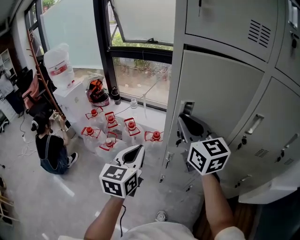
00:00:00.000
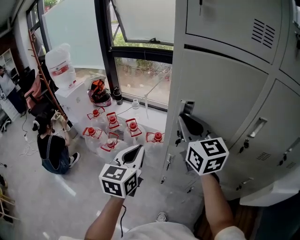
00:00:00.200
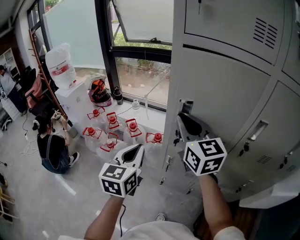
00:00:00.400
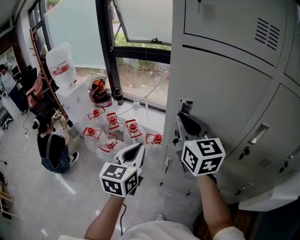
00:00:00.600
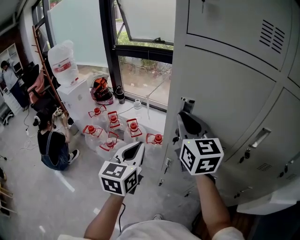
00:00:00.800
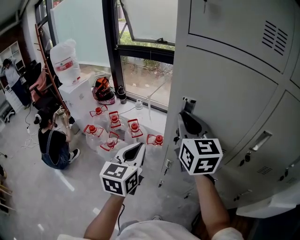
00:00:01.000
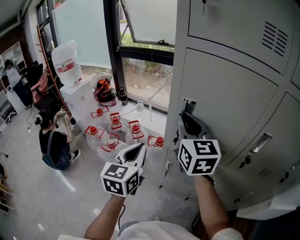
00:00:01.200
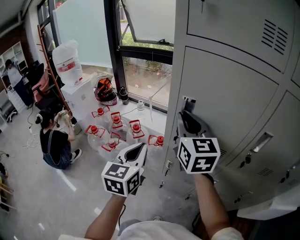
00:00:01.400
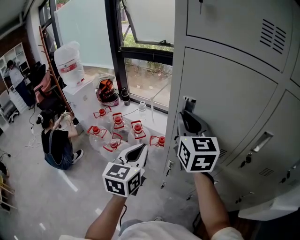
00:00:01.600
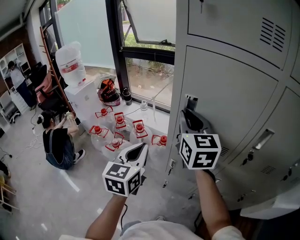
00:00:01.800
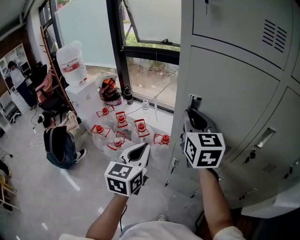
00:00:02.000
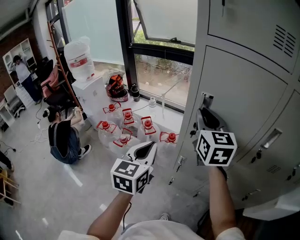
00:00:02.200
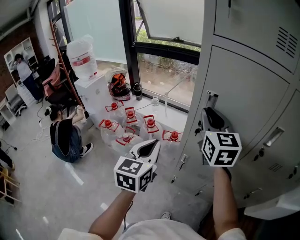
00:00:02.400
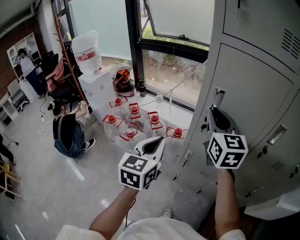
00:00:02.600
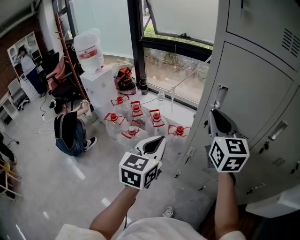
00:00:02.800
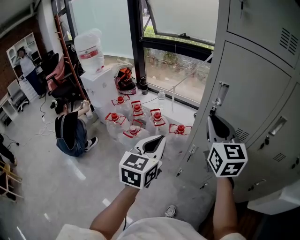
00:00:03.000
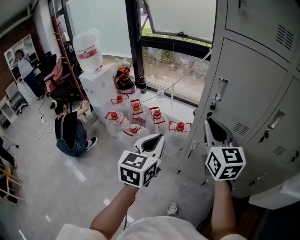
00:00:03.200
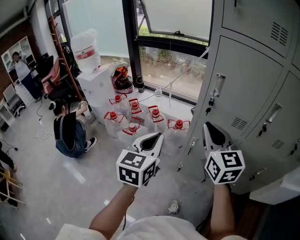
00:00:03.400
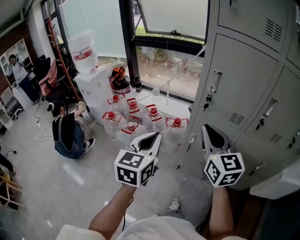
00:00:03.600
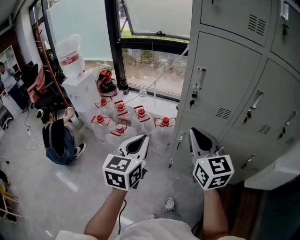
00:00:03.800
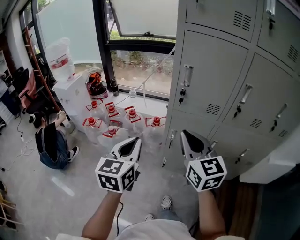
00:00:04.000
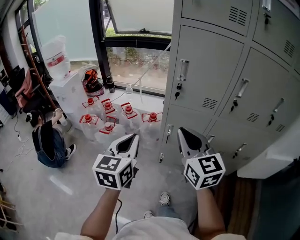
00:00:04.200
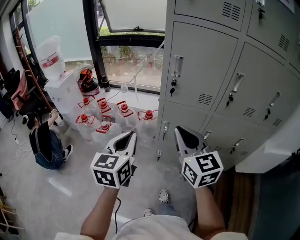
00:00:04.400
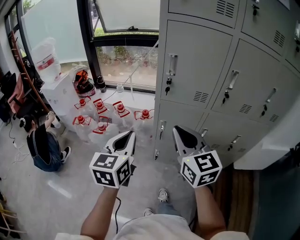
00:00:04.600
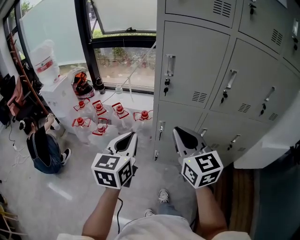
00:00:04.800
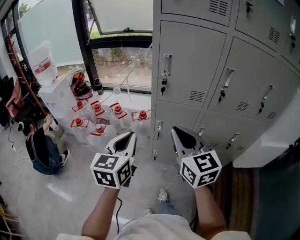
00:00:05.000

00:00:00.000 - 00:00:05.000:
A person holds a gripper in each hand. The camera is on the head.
00:00:00.000 - 00:00:01.600: The right gripper moves forward, roughly 5 cm.
00:00:01.600 - 00:00:03.400: The right gripper travels backward by some 15 cm; the left gripper heads backward and to the left, covering approximately 15 cm.
00:00:03.400 - 00:00:05.000: The left gripper travels backward by some 5 cm. Meanwhile the right gripper travels backward by some 10 cm.

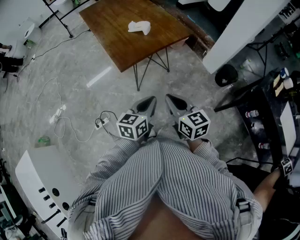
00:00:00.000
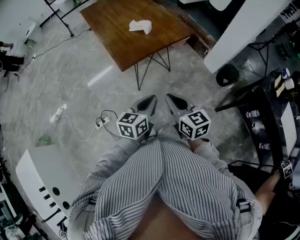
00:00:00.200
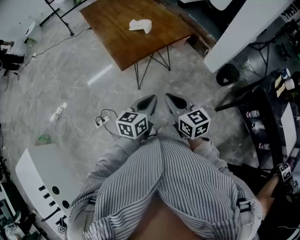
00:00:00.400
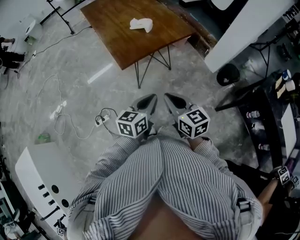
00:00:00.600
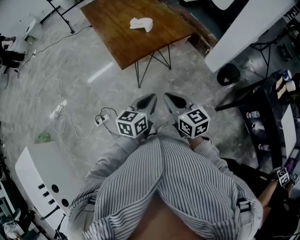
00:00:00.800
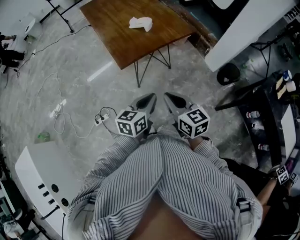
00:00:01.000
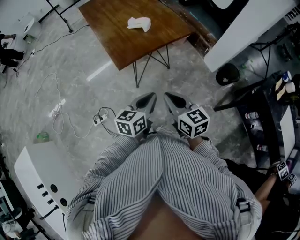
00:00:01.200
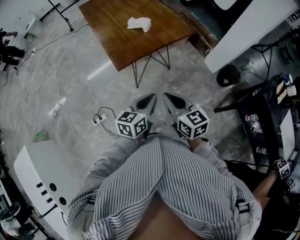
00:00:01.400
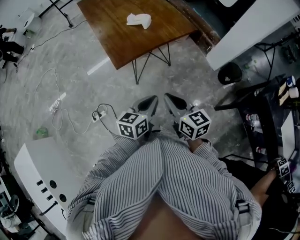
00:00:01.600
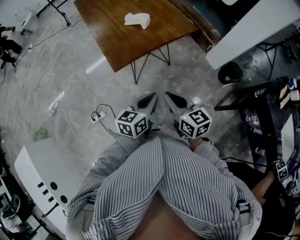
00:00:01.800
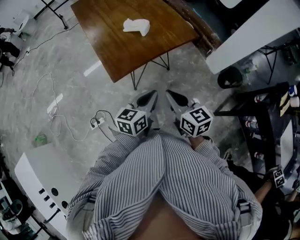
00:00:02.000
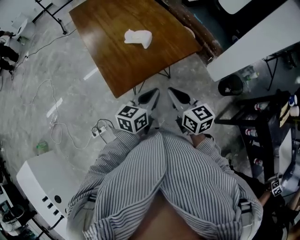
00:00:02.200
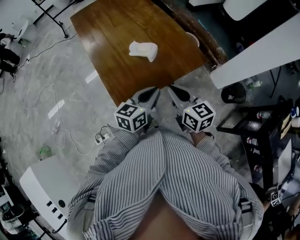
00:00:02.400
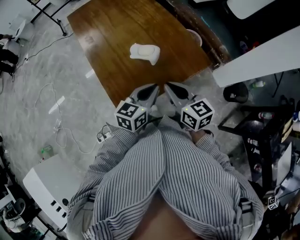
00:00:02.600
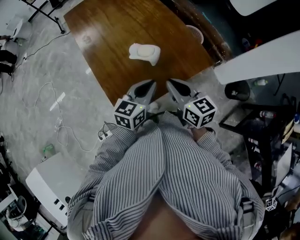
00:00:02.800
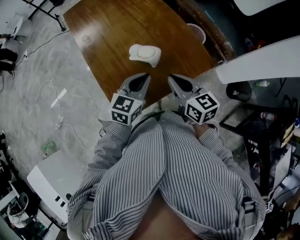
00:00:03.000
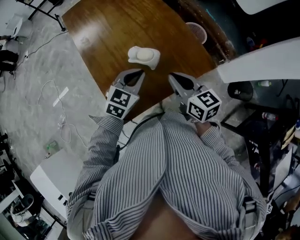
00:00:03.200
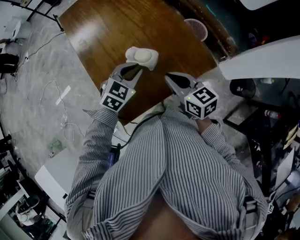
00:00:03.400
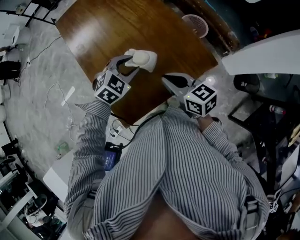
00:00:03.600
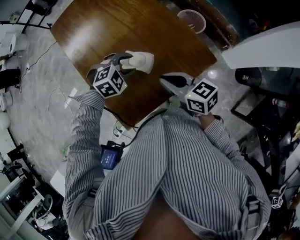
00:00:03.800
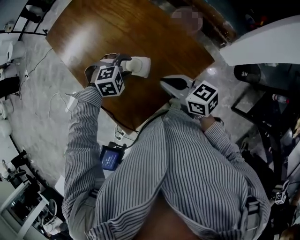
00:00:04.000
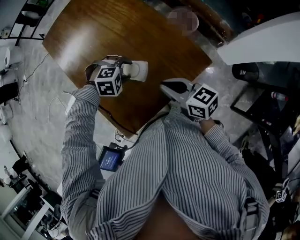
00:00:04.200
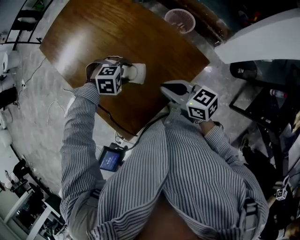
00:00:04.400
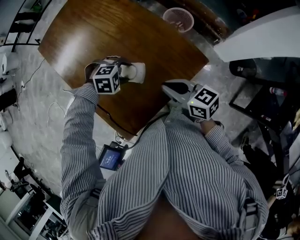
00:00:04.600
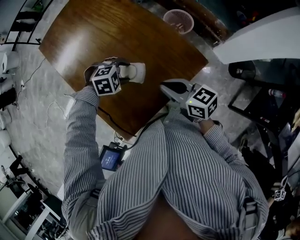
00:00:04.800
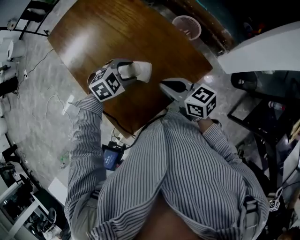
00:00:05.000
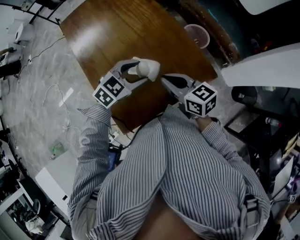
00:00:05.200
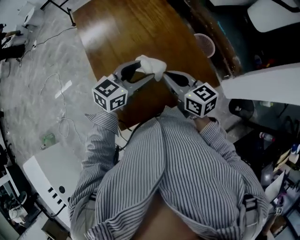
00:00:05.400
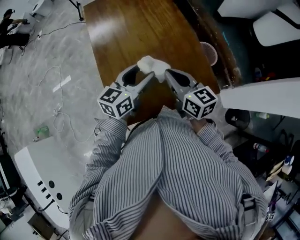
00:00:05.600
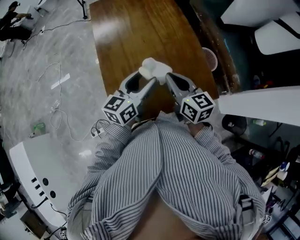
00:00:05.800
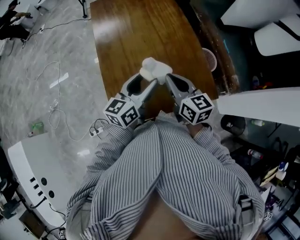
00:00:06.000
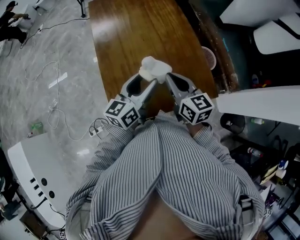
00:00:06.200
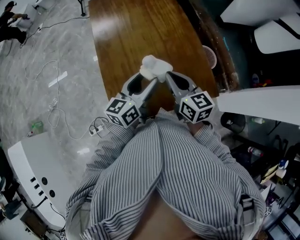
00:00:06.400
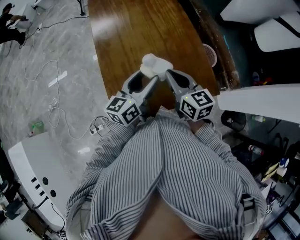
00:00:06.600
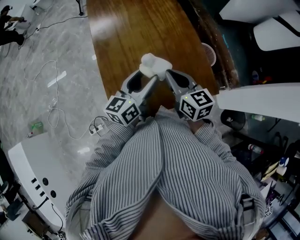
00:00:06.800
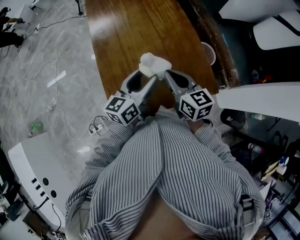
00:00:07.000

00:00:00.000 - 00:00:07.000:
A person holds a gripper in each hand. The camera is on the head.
00:00:00.000 - 00:00:01.400: The grippers move only a little.
00:00:01.400 - 00:00:02.800: The two grippers go approximately 35 cm forward.
00:00:02.800 - 00:00:04.200: The left gripper moves some 20 cm, tilts its fingers approximately 60 degrees downward, and opens its fingers, while the right gripper ends up about 10 cm from where it was.
00:00:04.200 - 00:00:05.600: The left gripper goes roughly 15 cm upward, and tilts its fingers approximately 60 degrees upward, while the right gripper changes place by some 10 cm.
00:00:05.600 - 00:00:07.000: The grippers move only a little.

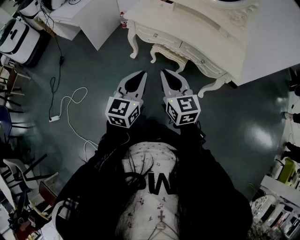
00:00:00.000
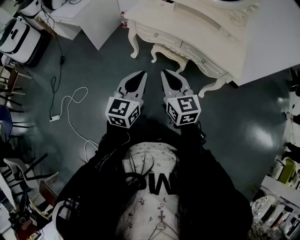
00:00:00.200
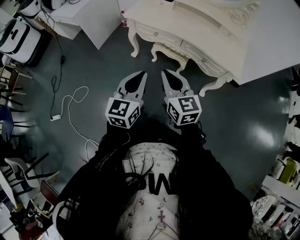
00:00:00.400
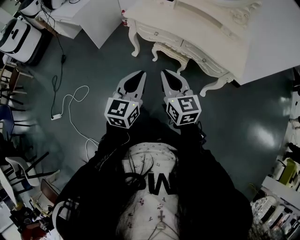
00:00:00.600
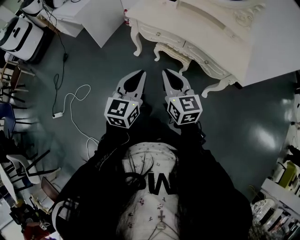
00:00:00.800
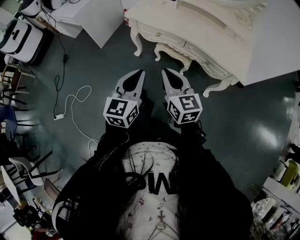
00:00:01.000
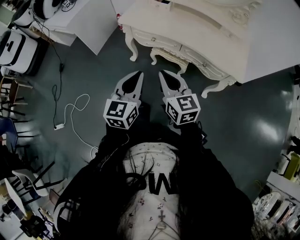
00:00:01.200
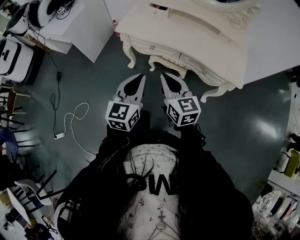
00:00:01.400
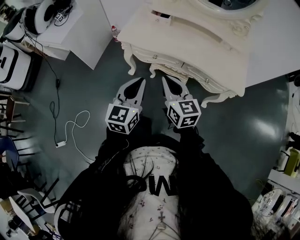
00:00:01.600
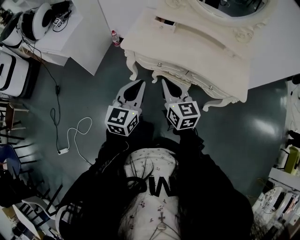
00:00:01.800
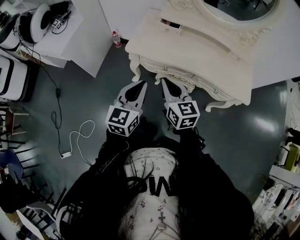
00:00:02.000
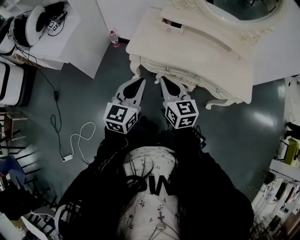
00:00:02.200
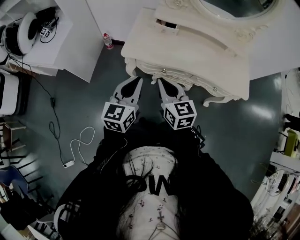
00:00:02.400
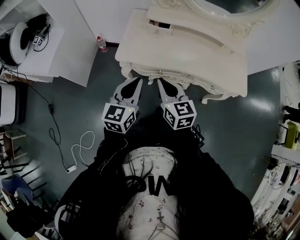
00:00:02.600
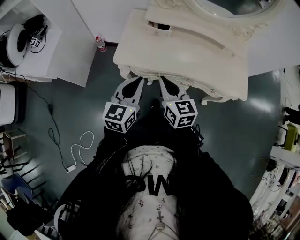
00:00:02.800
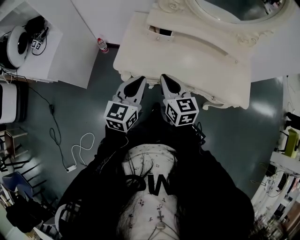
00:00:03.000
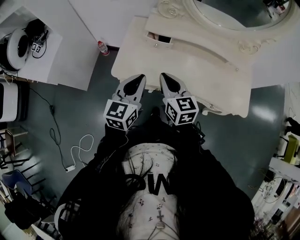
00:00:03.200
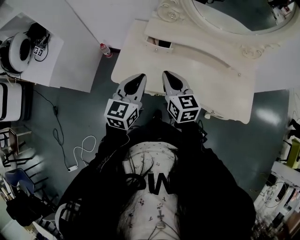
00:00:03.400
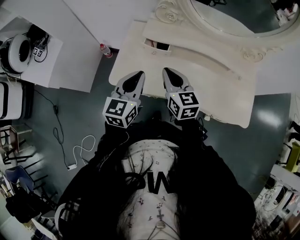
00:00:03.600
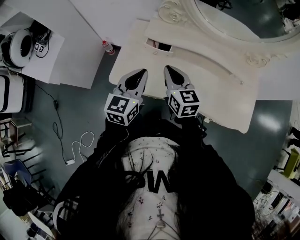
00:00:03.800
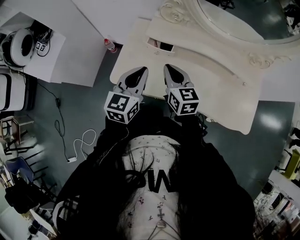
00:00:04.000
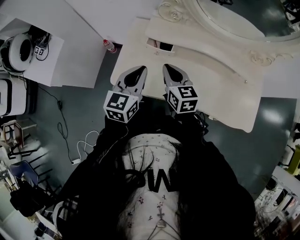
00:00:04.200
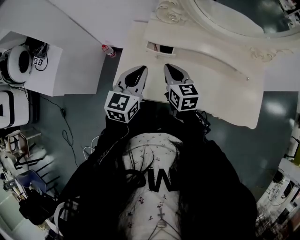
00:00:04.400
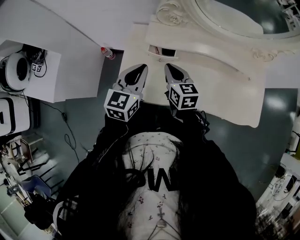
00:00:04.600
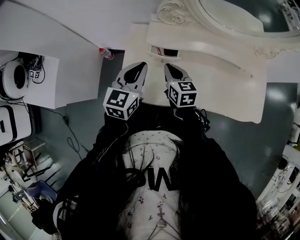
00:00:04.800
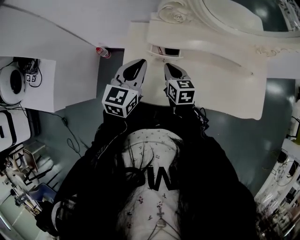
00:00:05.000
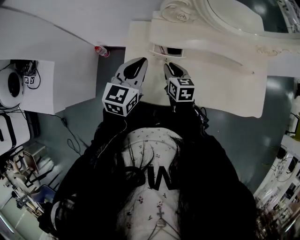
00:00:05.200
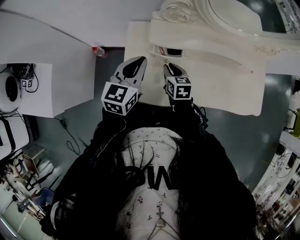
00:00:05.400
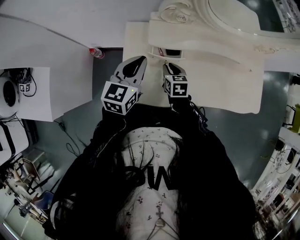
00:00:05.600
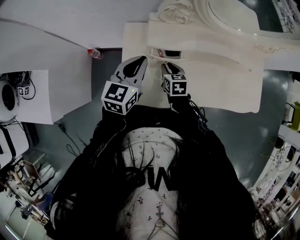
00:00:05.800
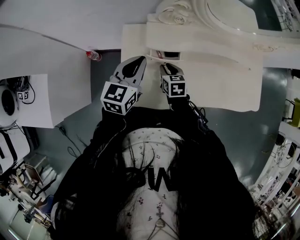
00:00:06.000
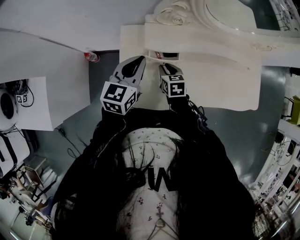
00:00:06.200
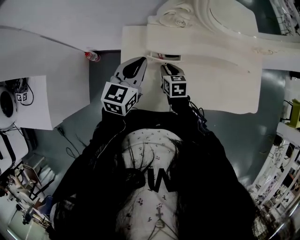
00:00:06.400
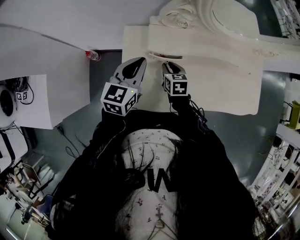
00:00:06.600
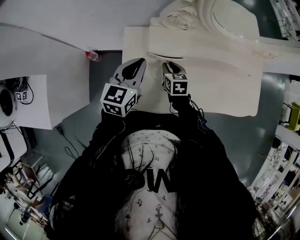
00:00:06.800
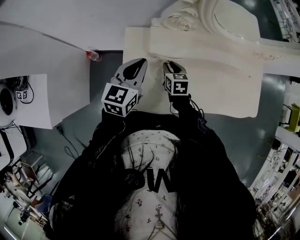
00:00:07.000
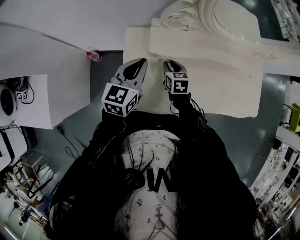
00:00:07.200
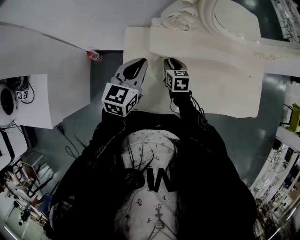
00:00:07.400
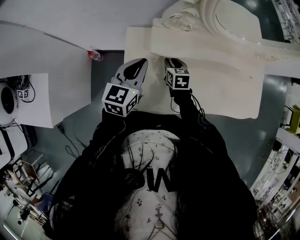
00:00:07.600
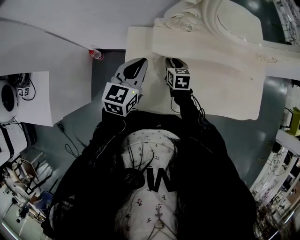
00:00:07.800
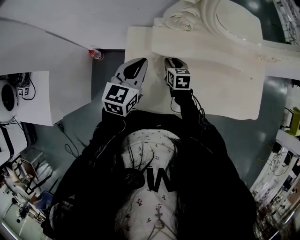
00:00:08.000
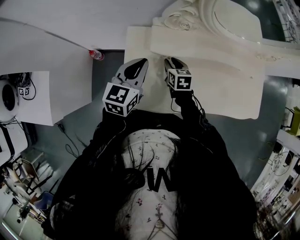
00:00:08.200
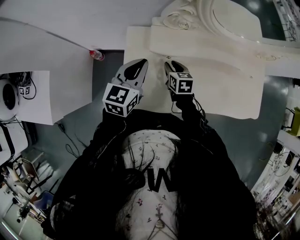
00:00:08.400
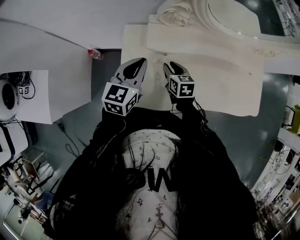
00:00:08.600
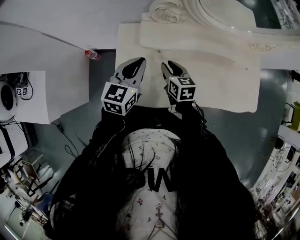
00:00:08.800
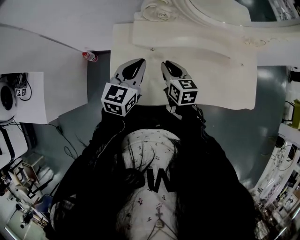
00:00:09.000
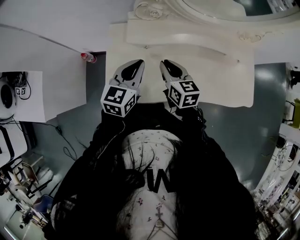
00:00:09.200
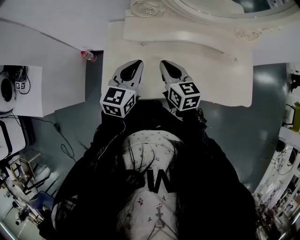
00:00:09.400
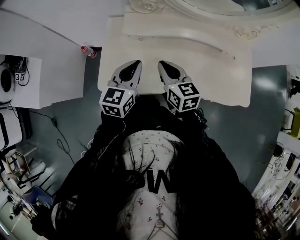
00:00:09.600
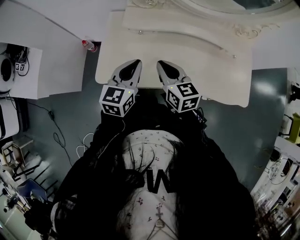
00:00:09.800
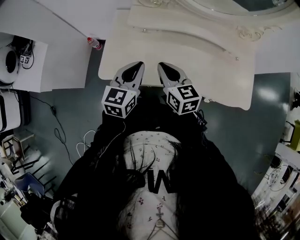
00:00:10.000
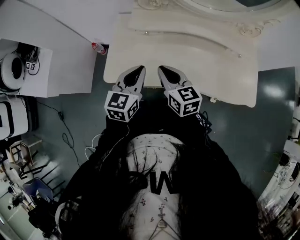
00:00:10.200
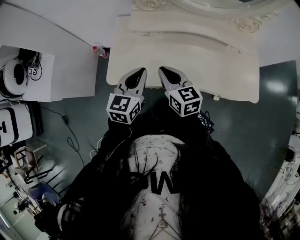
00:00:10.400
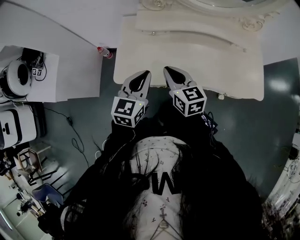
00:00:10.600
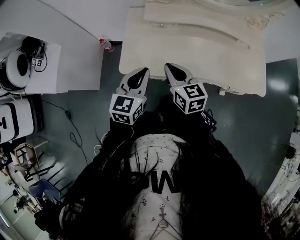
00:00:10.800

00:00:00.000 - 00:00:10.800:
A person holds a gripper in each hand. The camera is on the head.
00:00:00.000 - 00:00:01.600: Both grippers travel together forward, about 20 cm.
00:00:01.600 - 00:00:03.000: Both grippers move forward, about 20 cm.
00:00:03.000 - 00:00:04.600: The grippers both shift forward by roughly 20 cm.
00:00:04.600 - 00:00:06.200: The left gripper moves forward and to the left, some 10 cm; the right gripper shifts about 15 cm downward, changes its angle by about 30 degrees, and opens up.
00:00:06.200 - 00:00:07.800: The right gripper goes about 5 cm forward.
00:00:07.800 - 00:00:09.200: The left gripper moves to the right and backward, roughly 10 cm; the right gripper heads upward, backward and to the right, covering some 20 cm, and swivels roughly 20 degrees.
00:00:09.200 - 00:00:10.800: The grippers both shift backward by approximately 15 cm.

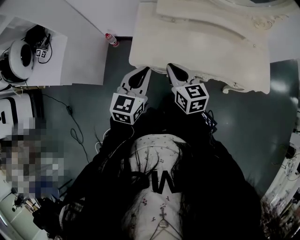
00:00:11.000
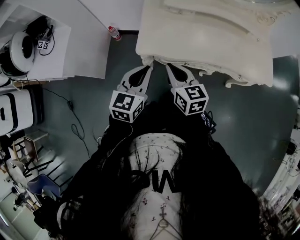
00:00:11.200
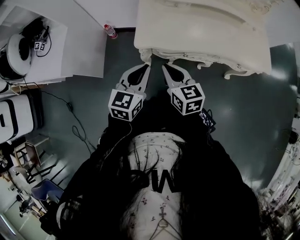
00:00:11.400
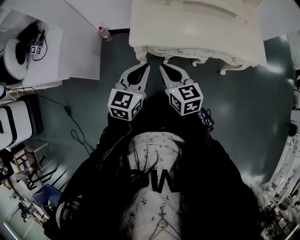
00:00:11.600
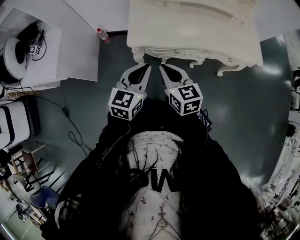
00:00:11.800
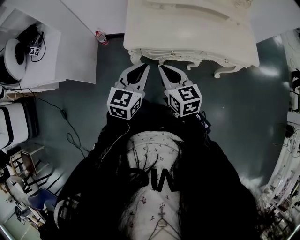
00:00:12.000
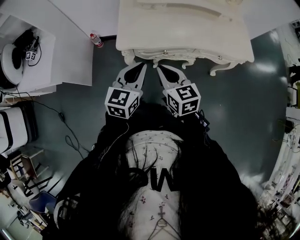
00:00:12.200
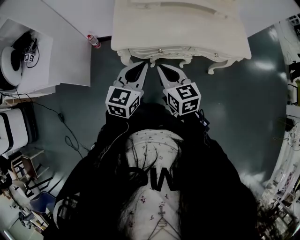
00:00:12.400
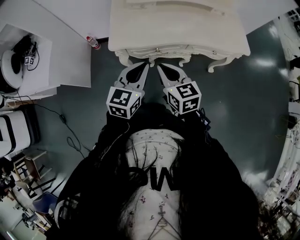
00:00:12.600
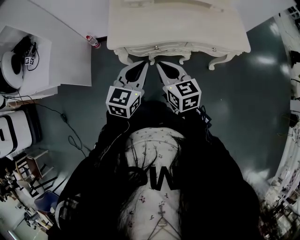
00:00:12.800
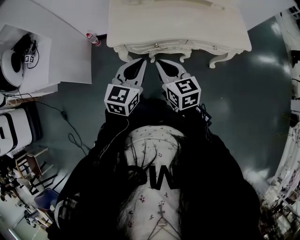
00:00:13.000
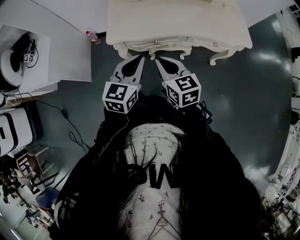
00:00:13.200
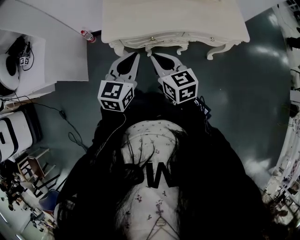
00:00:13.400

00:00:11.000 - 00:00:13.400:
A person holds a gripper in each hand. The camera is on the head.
00:00:11.000 - 00:00:12.200: Both grippers travel together backward, some 10 cm.
